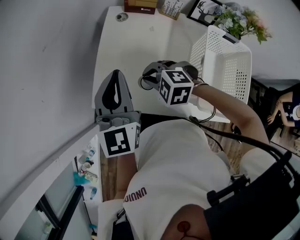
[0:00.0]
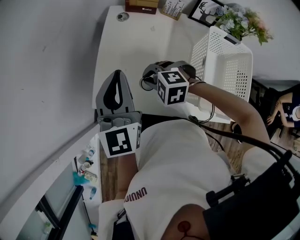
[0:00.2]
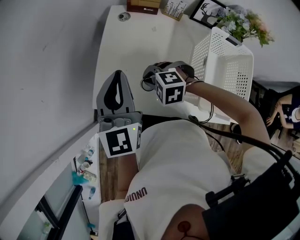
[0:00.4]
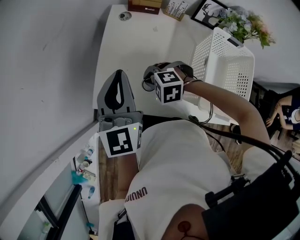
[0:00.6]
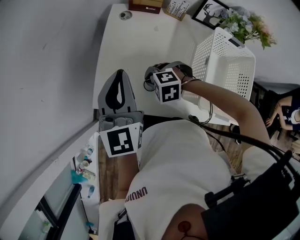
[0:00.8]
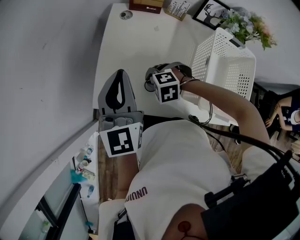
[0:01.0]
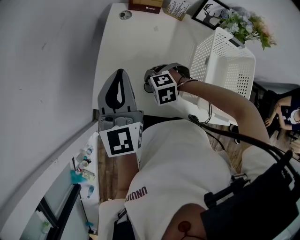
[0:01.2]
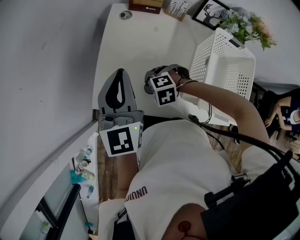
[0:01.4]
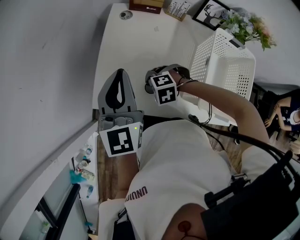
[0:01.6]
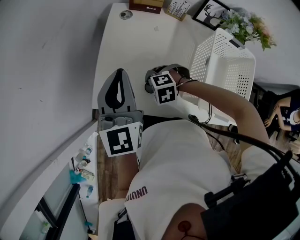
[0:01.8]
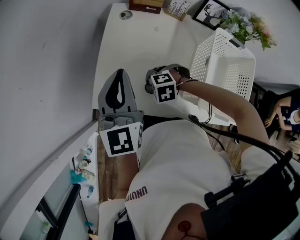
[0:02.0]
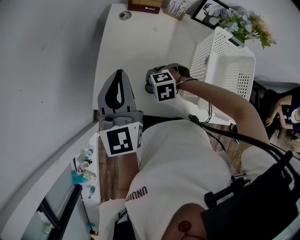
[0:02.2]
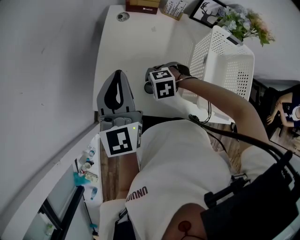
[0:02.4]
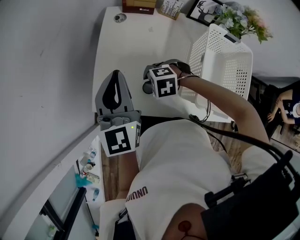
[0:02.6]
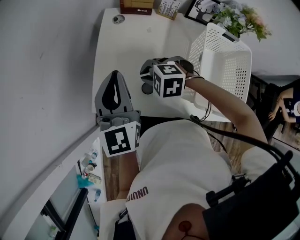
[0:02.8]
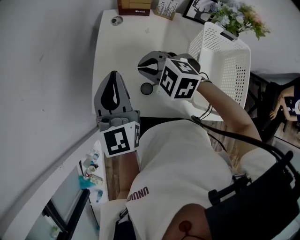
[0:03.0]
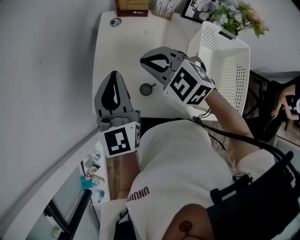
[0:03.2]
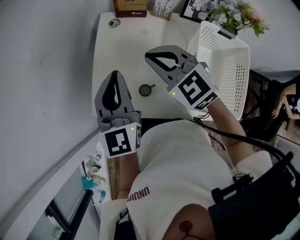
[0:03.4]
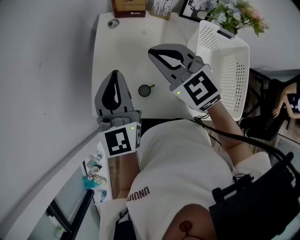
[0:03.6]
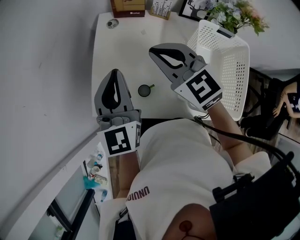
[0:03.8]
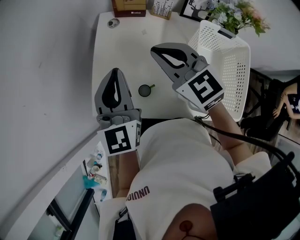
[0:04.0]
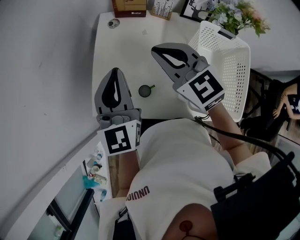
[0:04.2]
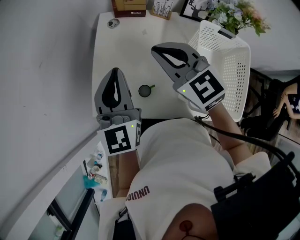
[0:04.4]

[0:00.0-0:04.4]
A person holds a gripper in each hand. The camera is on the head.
0:00.0 to 0:01.4: The right gripper heads downward, covering roughly 10 cm, and turns by some 20 degrees.
0:01.4 to 0:03.0: The right gripper heads upward, covering approximately 15 cm, and swivels some 30 degrees.
0:03.0 to 0:04.4: The right gripper shifts roughly 15 cm upward and to the right, and tilts its fingers approximately 30 degrees upward.

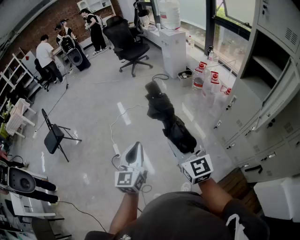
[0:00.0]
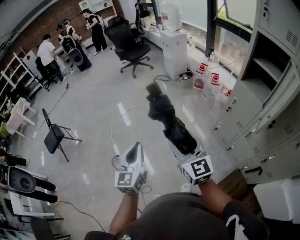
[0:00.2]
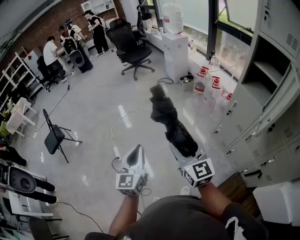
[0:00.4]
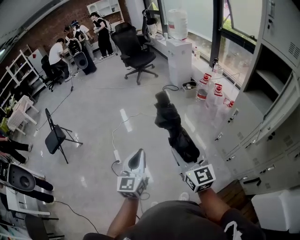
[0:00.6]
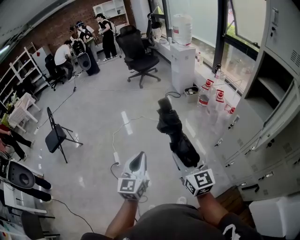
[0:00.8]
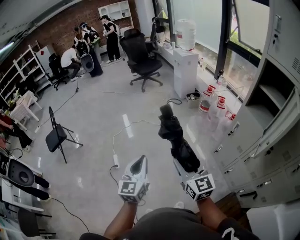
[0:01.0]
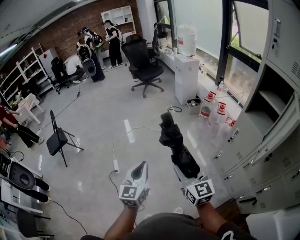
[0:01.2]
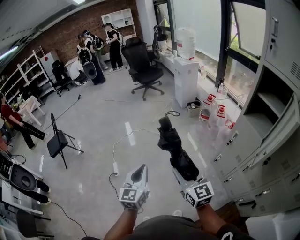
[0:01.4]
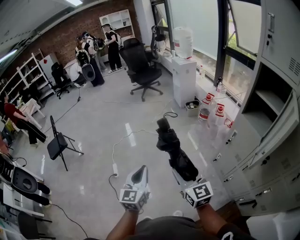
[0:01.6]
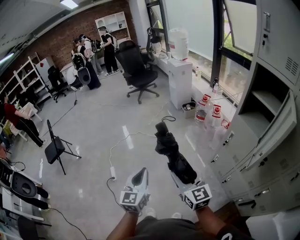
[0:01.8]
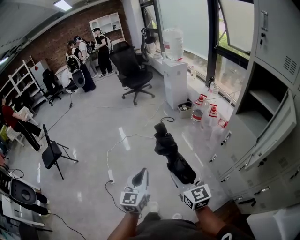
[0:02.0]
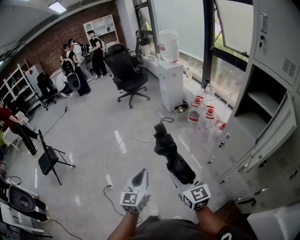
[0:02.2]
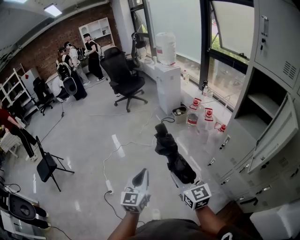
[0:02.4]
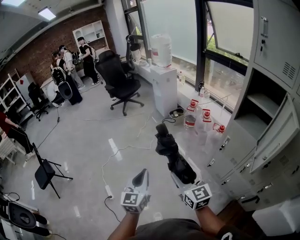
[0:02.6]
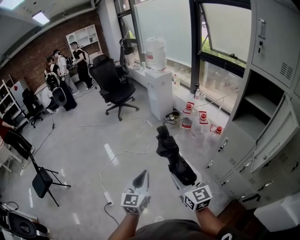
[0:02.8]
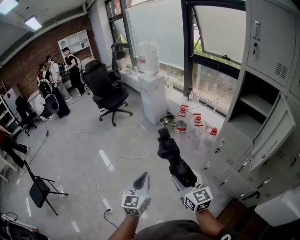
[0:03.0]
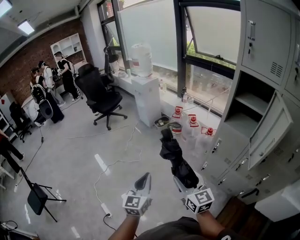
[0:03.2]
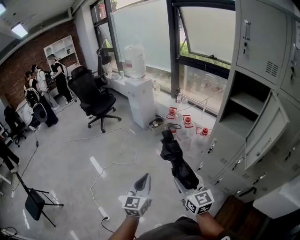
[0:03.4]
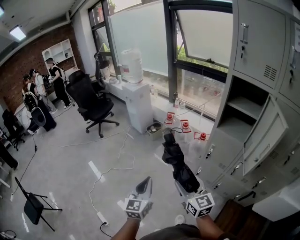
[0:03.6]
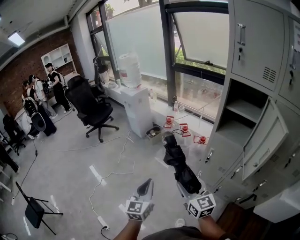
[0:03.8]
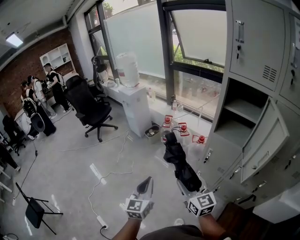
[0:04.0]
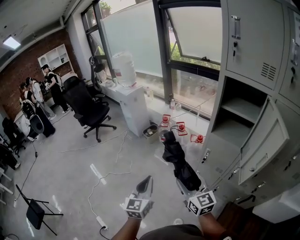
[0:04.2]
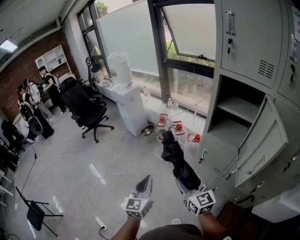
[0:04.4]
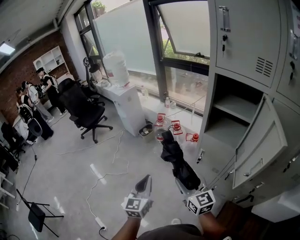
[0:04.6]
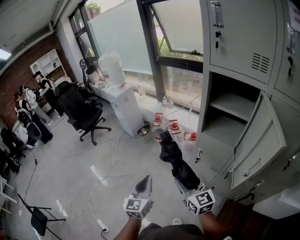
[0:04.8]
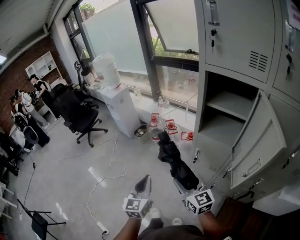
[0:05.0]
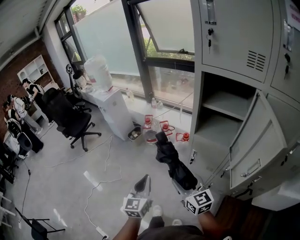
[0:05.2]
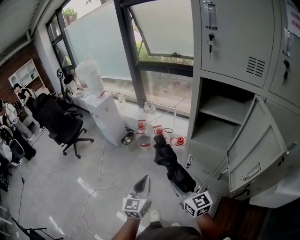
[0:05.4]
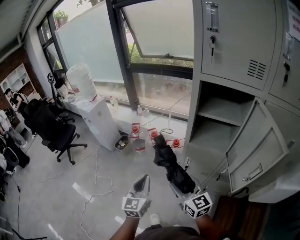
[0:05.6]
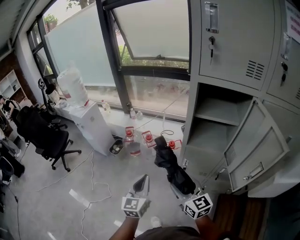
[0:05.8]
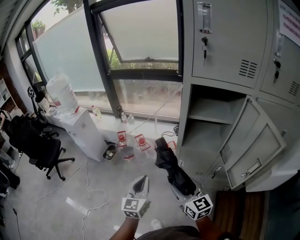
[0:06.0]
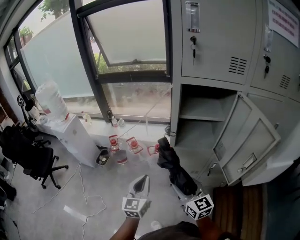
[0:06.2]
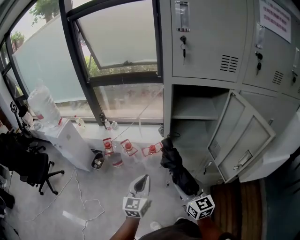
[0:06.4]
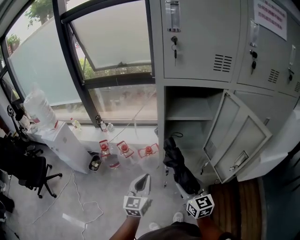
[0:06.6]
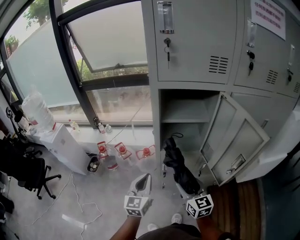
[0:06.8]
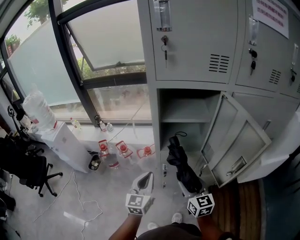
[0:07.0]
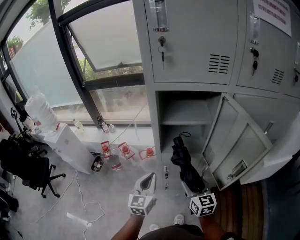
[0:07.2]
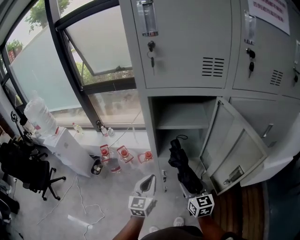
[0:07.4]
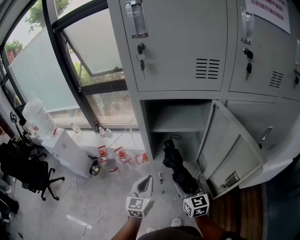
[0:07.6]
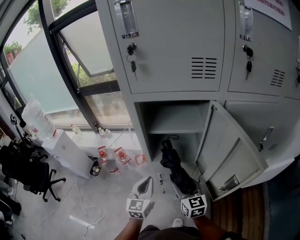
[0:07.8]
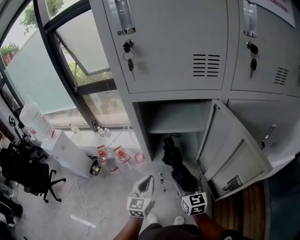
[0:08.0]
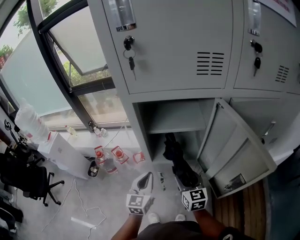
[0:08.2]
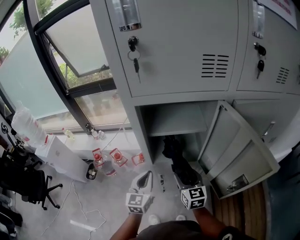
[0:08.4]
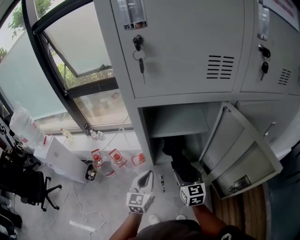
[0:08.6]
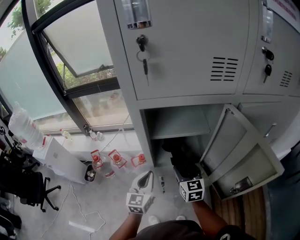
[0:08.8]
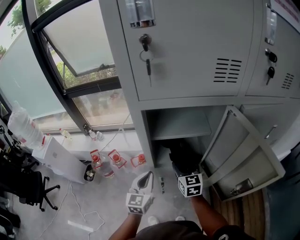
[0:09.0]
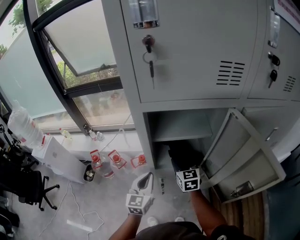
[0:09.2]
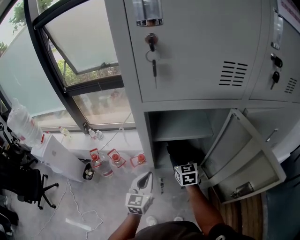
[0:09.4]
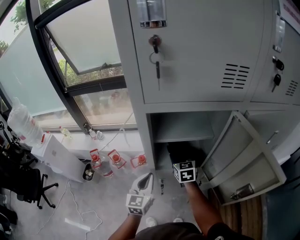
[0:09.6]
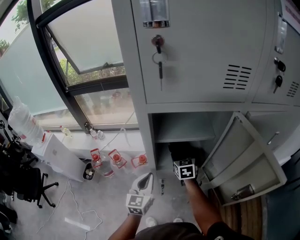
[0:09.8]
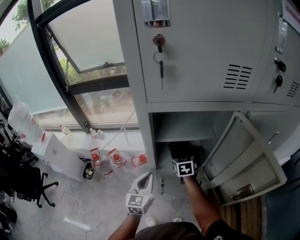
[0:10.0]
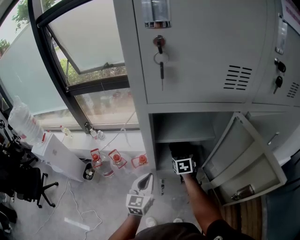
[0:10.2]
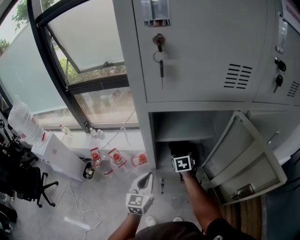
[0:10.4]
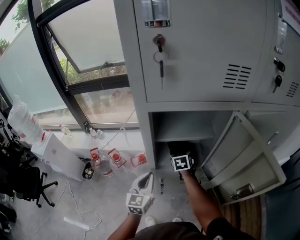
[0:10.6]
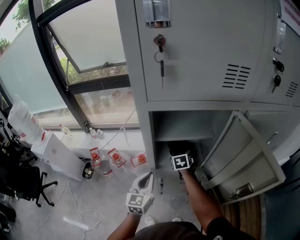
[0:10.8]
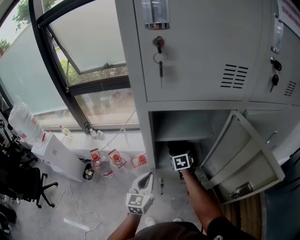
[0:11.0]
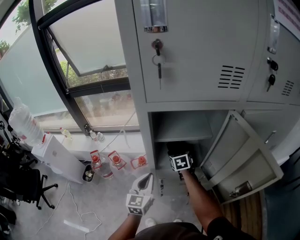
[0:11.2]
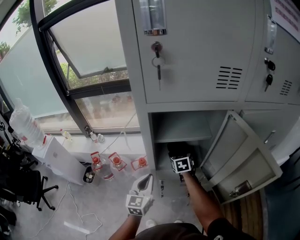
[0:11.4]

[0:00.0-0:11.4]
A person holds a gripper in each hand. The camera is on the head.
0:00.0 to 0:01.4: The grippers both shift to the right by about 5 cm.
0:01.4 to 0:02.8: Both grippers move forward, roughly 15 cm.
0:02.8 to 0:04.2: The left gripper goes roughly 20 cm forward and to the right. Meanwhile the right gripper travels to the right and forward by about 15 cm.
0:04.2 to 0:05.6: The grippers both shift forward and to the right by roughly 15 cm.
0:05.6 to 0:07.2: The right gripper changes place by roughly 15 cm, and rotates some 30 degrees. The left gripper shifts by roughly 20 cm, and rotates some 20 degrees.
0:07.2 to 0:08.6: Both grippers travel together forward, some 10 cm.
0:08.6 to 0:10.0: The right gripper is displaced forward by approximately 15 cm.
0:10.0 to 0:11.4: The grippers move only a little.

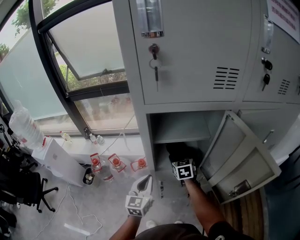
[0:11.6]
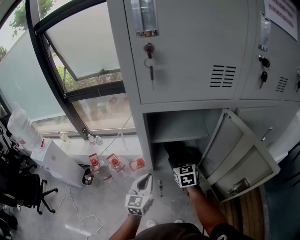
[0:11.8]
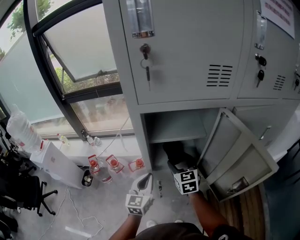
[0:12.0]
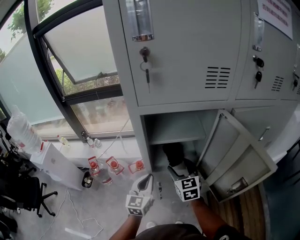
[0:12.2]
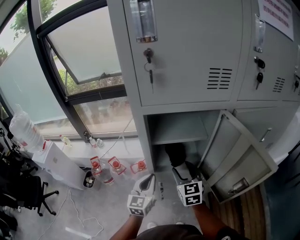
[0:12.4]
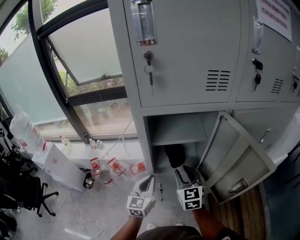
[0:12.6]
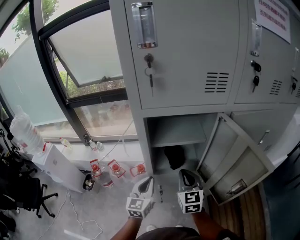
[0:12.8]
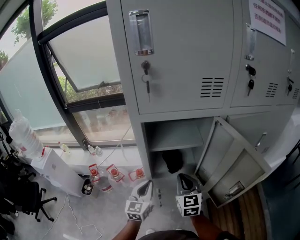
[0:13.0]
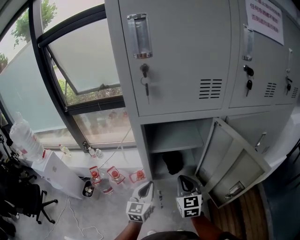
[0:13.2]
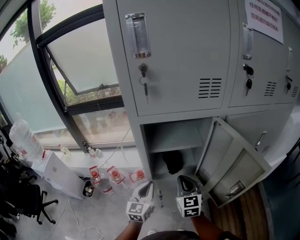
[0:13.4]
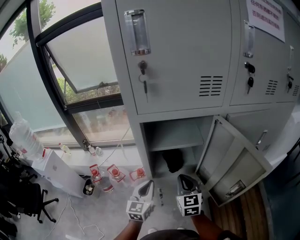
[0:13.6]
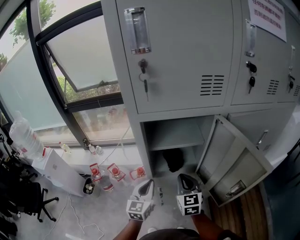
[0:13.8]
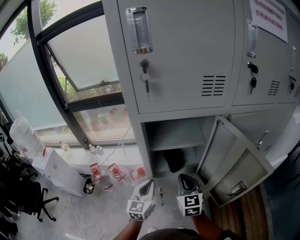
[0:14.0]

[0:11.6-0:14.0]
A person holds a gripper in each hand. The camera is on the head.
0:11.6 to 0:12.8: The right gripper goes some 15 cm backward and upward, and closes.
0:12.8 to 0:14.0: The grippers move only a little.

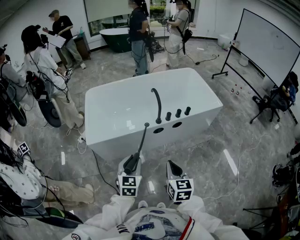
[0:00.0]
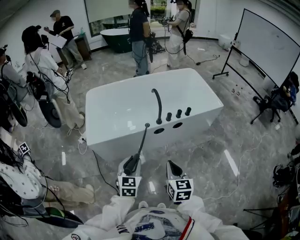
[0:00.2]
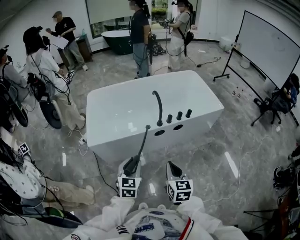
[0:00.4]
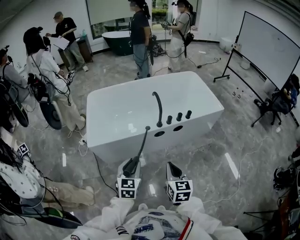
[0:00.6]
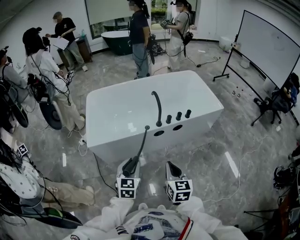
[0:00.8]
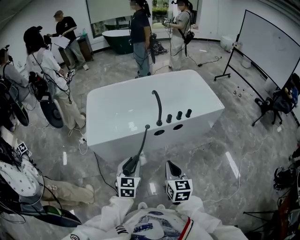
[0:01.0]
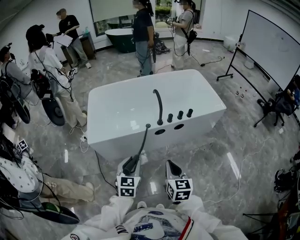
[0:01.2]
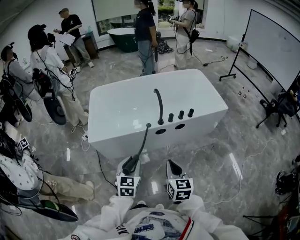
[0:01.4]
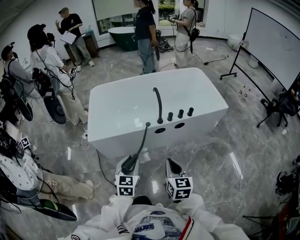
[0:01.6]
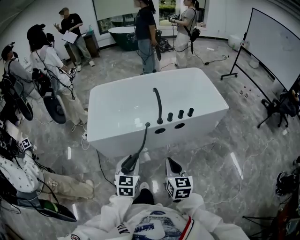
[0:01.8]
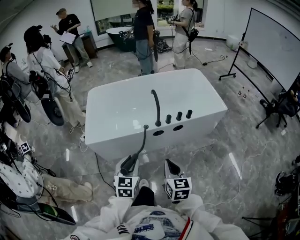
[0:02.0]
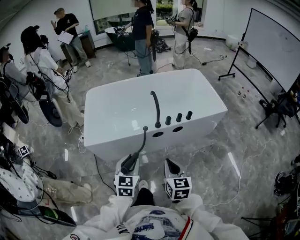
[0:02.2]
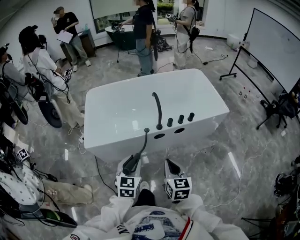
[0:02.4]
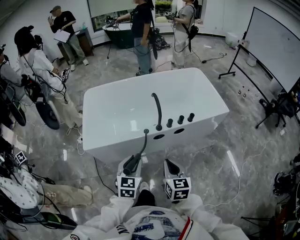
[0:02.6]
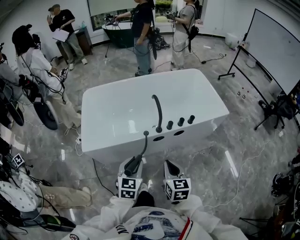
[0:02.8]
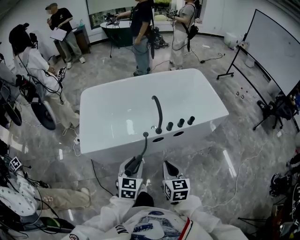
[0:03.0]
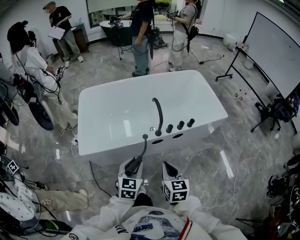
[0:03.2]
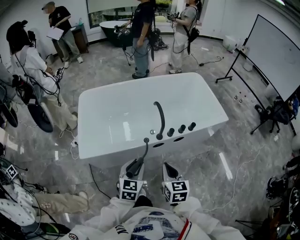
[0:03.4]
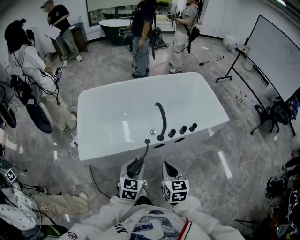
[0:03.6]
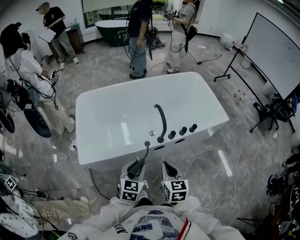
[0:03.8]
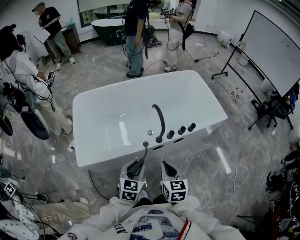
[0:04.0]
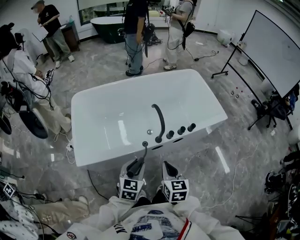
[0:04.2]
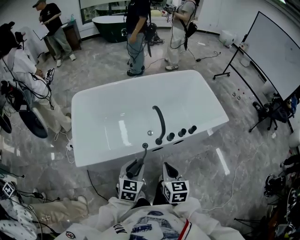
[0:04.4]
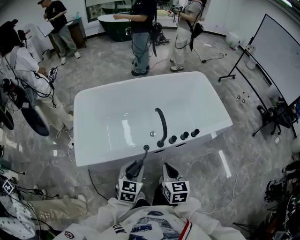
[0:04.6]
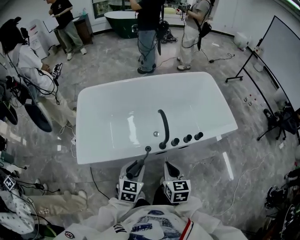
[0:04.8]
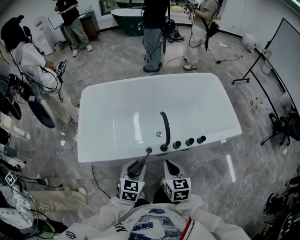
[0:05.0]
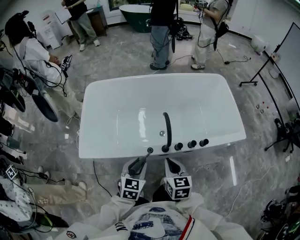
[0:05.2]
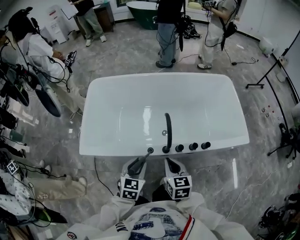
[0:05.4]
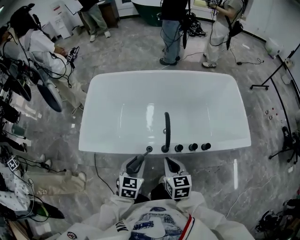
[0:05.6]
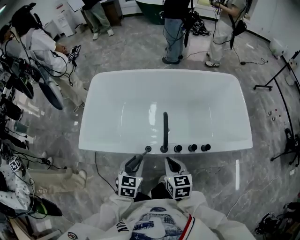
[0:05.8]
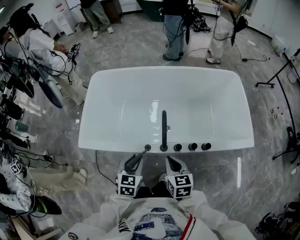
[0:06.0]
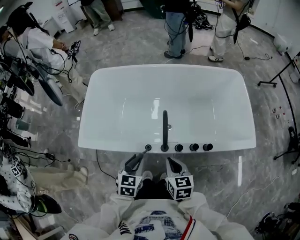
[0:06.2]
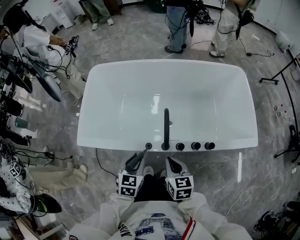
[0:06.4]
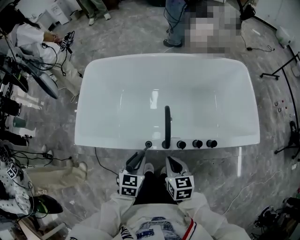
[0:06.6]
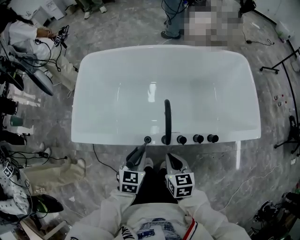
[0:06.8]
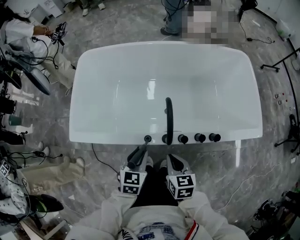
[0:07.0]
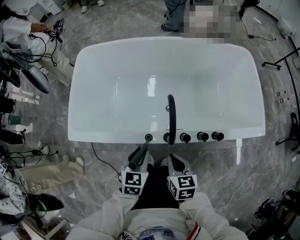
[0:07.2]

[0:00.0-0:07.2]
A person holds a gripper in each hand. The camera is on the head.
0:00.0 to 0:01.4: The grippers move only a little.
0:01.4 to 0:02.8: Both grippers travel together forward, roughly 10 cm.
0:02.8 to 0:04.4: The grippers both shift forward by about 10 cm.
0:04.4 to 0:05.8: The left gripper changes place by some 10 cm, and changes its angle by some 20 degrees; the right gripper shifts by approximately 15 cm, and turns by about 20 degrees.
0:05.8 to 0:07.2: The grippers both shift downward by about 10 cm.
